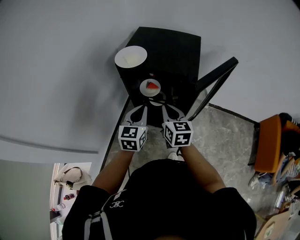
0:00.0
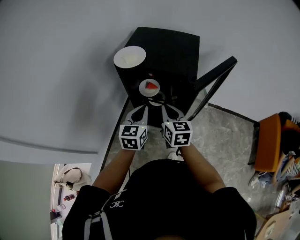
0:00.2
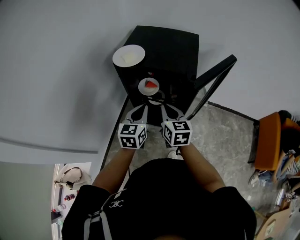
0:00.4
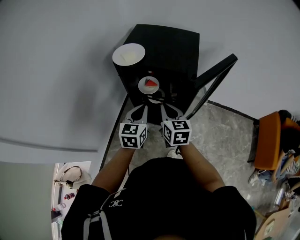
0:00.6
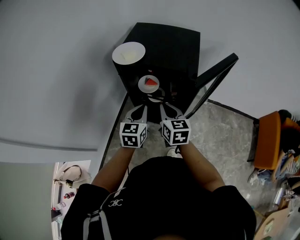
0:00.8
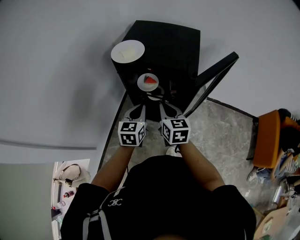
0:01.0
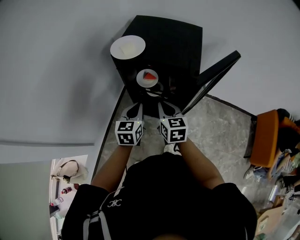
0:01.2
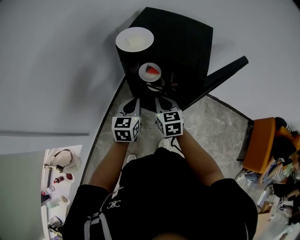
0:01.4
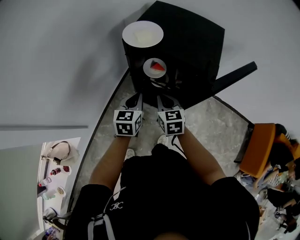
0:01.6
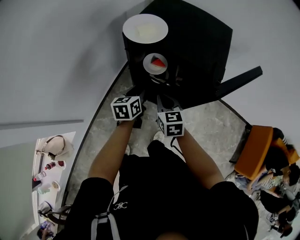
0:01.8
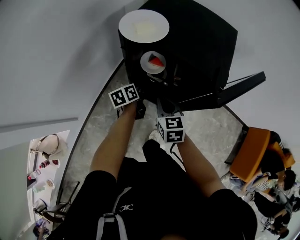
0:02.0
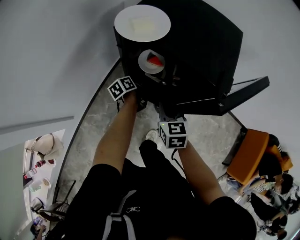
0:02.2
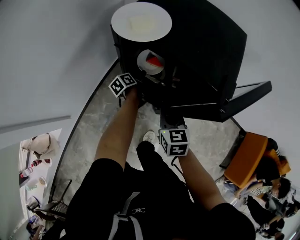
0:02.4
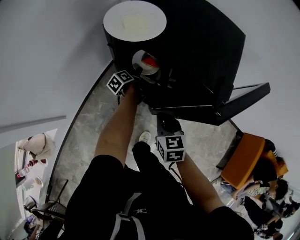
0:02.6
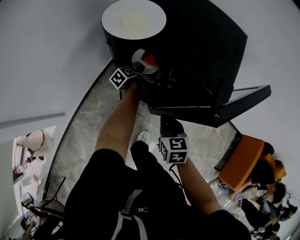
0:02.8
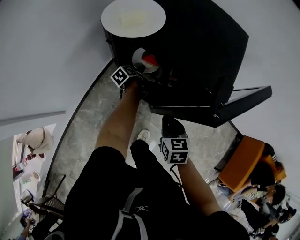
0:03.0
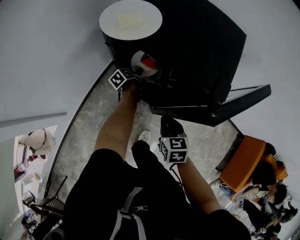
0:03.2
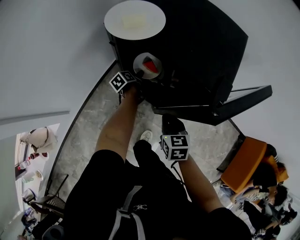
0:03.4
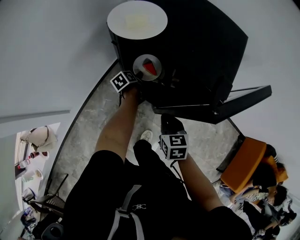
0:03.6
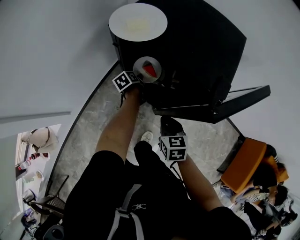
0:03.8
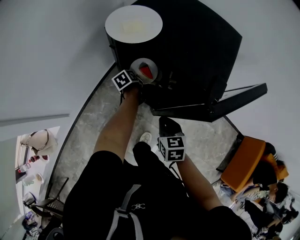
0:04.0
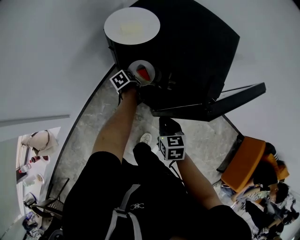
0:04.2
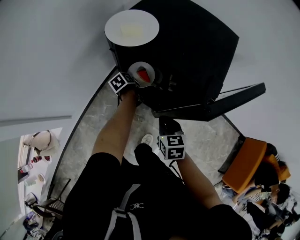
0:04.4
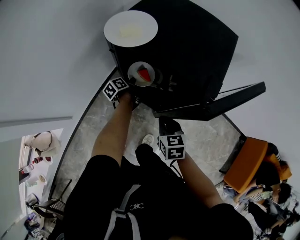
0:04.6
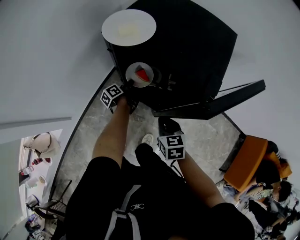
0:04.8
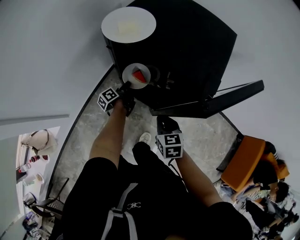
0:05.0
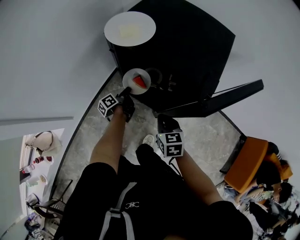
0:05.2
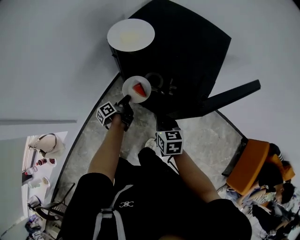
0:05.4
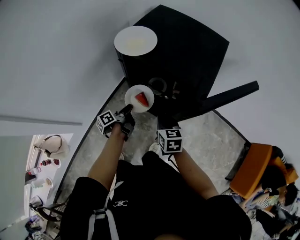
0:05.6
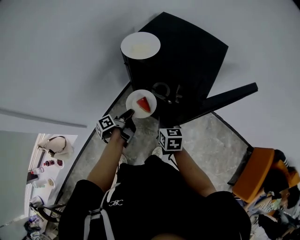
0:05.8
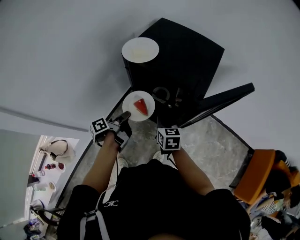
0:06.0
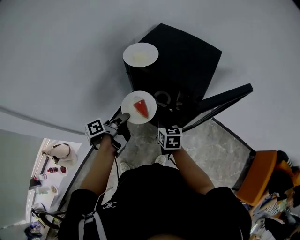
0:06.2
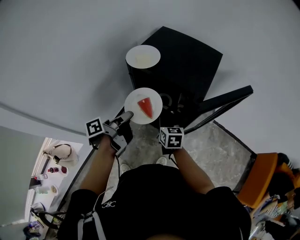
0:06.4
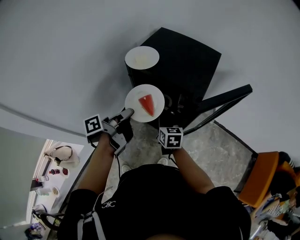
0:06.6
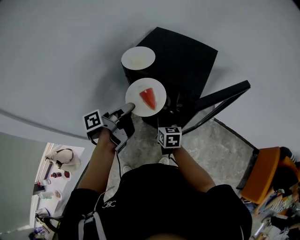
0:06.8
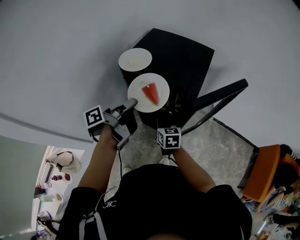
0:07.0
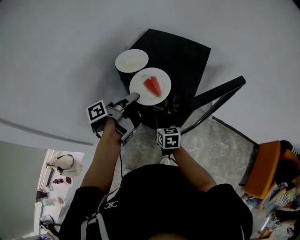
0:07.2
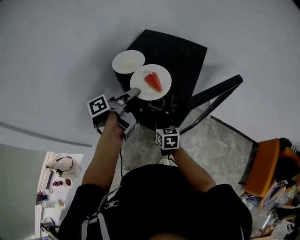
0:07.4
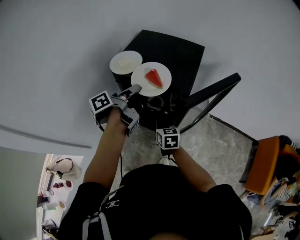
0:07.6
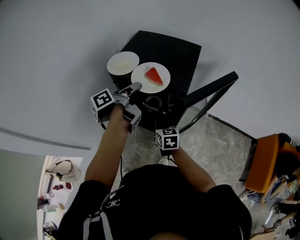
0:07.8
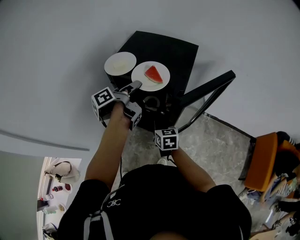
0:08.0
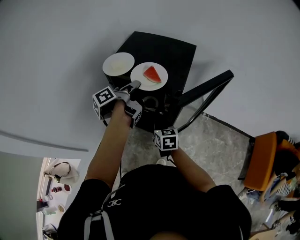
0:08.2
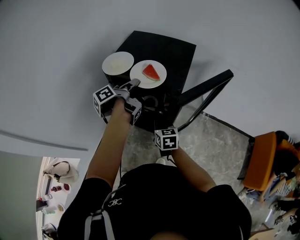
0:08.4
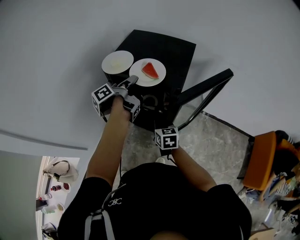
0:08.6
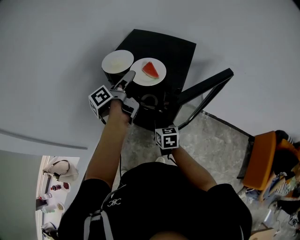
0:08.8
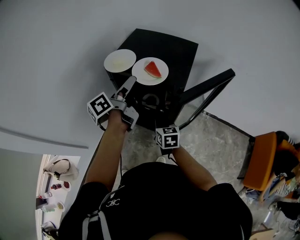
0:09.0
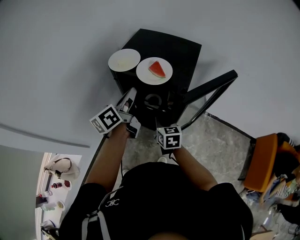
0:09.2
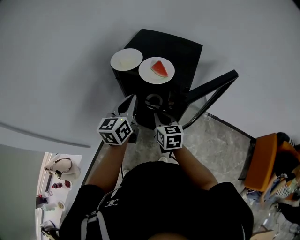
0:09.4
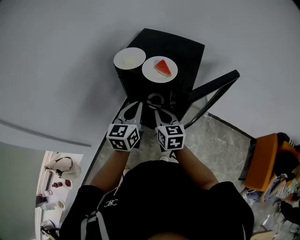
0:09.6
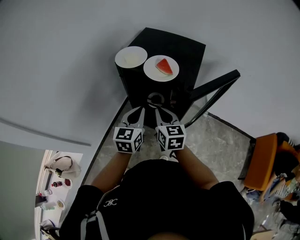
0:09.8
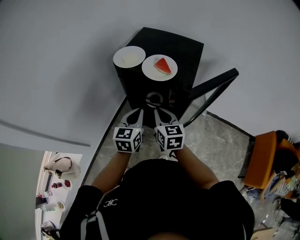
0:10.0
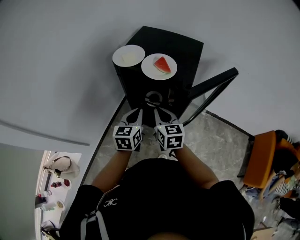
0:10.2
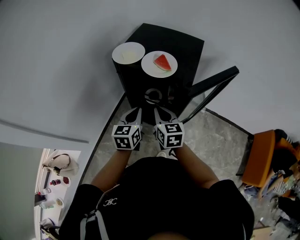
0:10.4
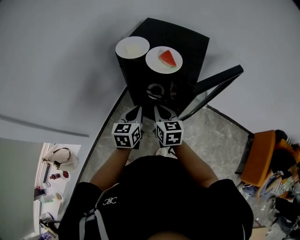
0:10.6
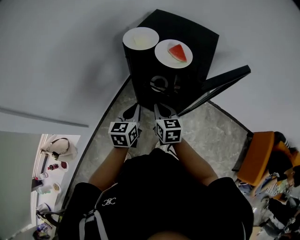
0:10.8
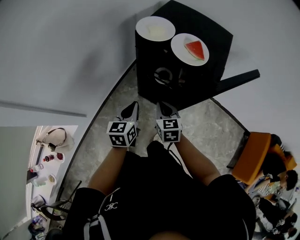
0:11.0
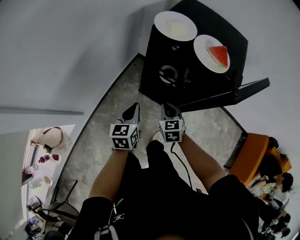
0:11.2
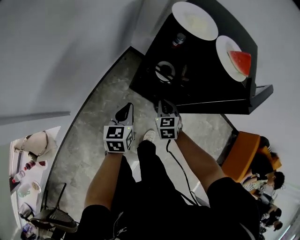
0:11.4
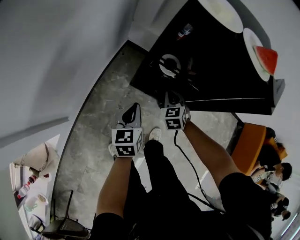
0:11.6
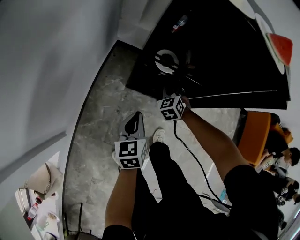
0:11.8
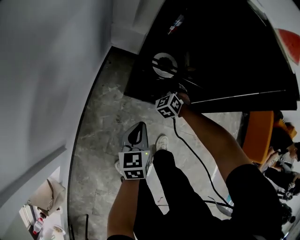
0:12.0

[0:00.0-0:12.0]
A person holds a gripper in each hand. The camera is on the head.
0:00.0 to 0:01.6: The two grippers go some 10 cm downward. The right gripper turns by about 20 degrees.
0:01.6 to 0:03.0: The left gripper goes approximately 35 cm downward and forward, twists approximately 60 degrees counterclockwise, seen from behind, and opens. The right gripper moves to the right and downward, some 15 cm.
0:03.0 to 0:04.4: The left gripper moves some 5 cm, and closes up.
0:04.4 to 0:06.0: The left gripper shifts about 25 cm upward and backward, and points its fingers some 30 degrees further upward, while the right gripper shifts about 5 cm upward.
0:06.0 to 0:07.6: The left gripper moves upward, to the right and forward, approximately 25 cm.
0:07.6 to 0:09.0: The left gripper opens its fingers.
0:09.0 to 0:10.4: The right gripper shifts roughly 10 cm upward, while the left gripper travels downward and backward by roughly 15 cm, rolls clockwise, seen from behind, by approximately 60 degrees, and closes its fingers.
0:10.4 to 0:12.0: The two grippers go roughly 40 cm downward. The right gripper rotates approximately 60 degrees, and opens up.

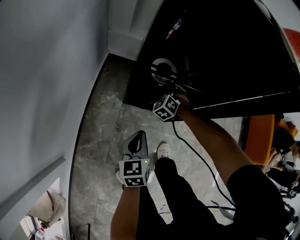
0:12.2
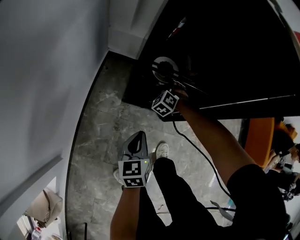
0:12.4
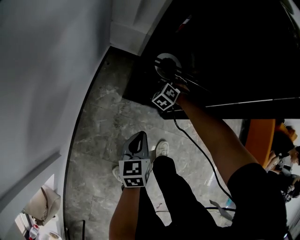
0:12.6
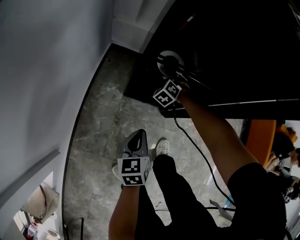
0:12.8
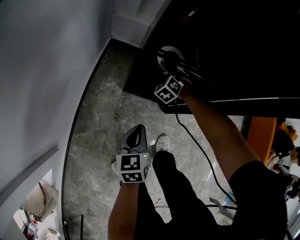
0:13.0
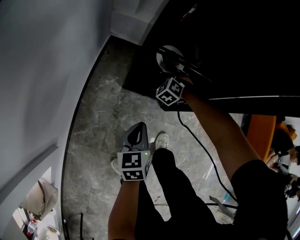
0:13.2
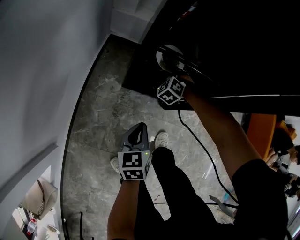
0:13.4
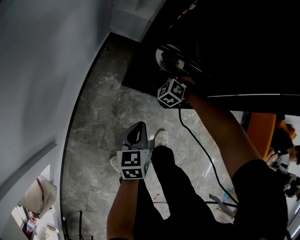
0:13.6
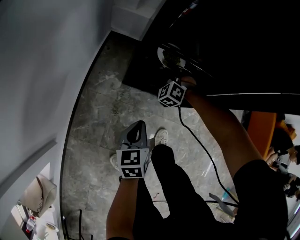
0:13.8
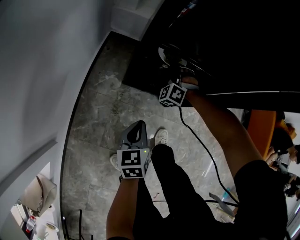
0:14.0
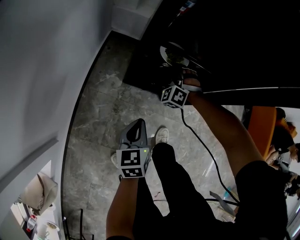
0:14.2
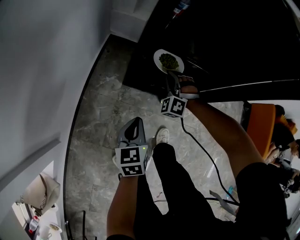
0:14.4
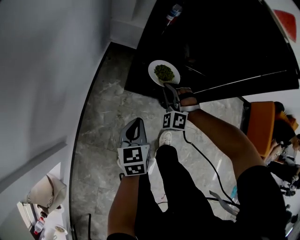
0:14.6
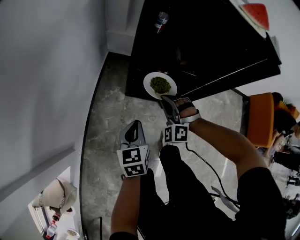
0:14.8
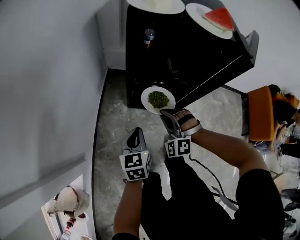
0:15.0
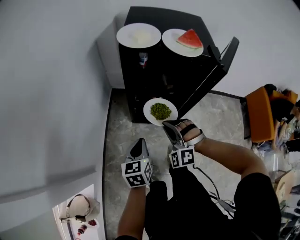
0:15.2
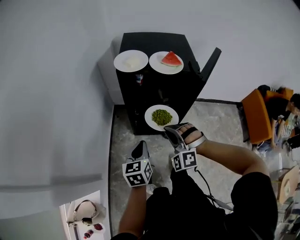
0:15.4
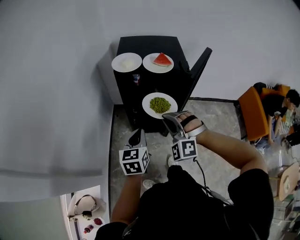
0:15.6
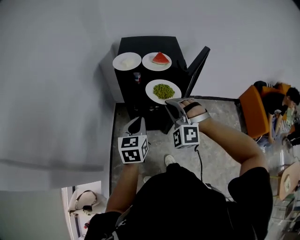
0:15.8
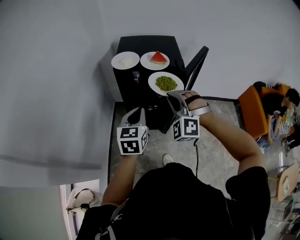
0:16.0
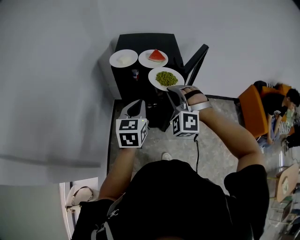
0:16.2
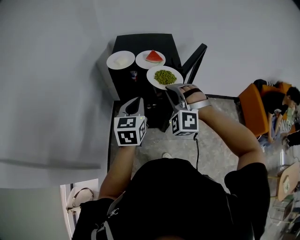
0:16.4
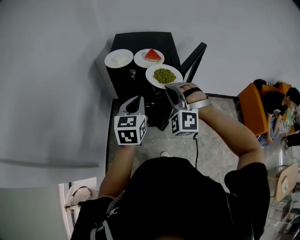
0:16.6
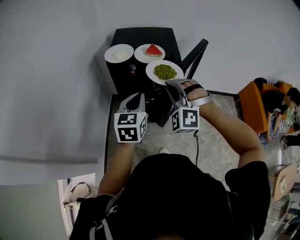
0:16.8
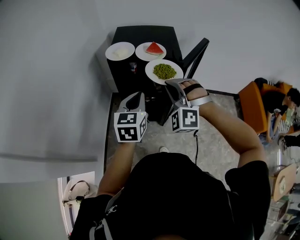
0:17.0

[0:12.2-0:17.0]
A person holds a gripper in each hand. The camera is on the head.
0:12.2 to 0:13.8: The right gripper closes up.
0:13.8 to 0:15.4: The right gripper is displaced upward and backward by approximately 50 cm. Meanwhile the left gripper moves upward, roughly 35 cm.
0:15.4 to 0:17.0: The left gripper shifts about 20 cm upward and to the right. The right gripper is displaced upward by some 15 cm.

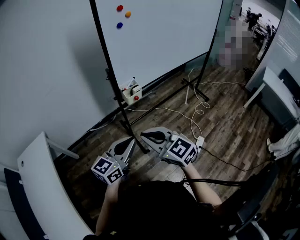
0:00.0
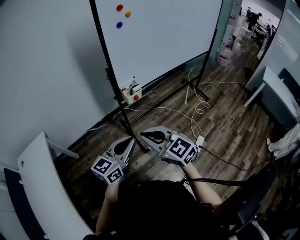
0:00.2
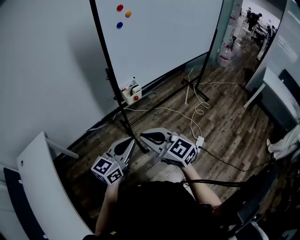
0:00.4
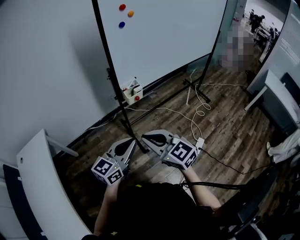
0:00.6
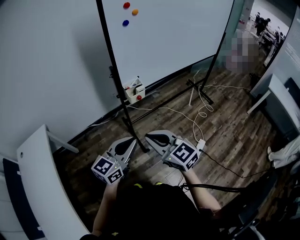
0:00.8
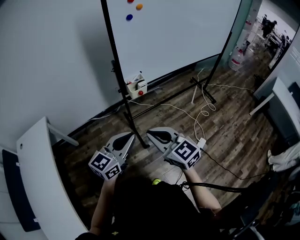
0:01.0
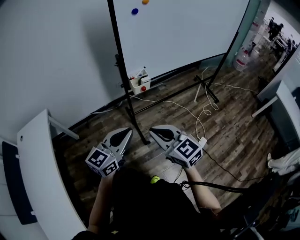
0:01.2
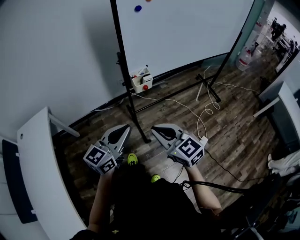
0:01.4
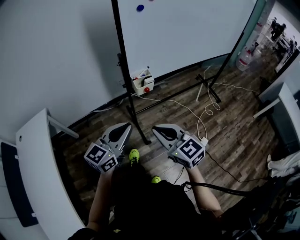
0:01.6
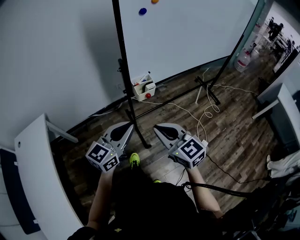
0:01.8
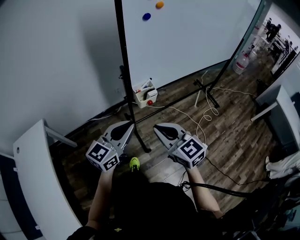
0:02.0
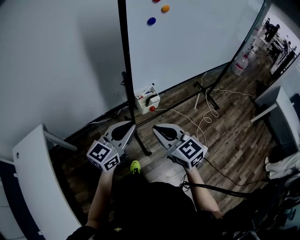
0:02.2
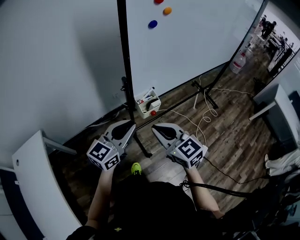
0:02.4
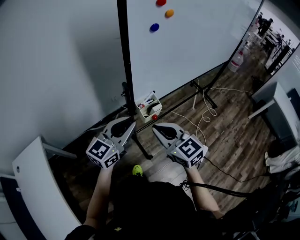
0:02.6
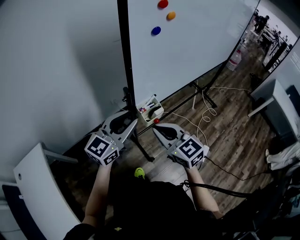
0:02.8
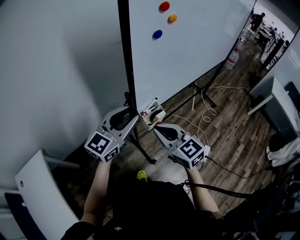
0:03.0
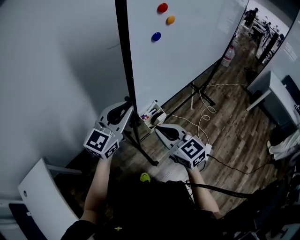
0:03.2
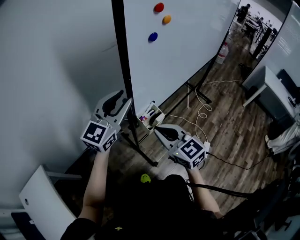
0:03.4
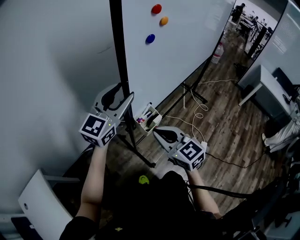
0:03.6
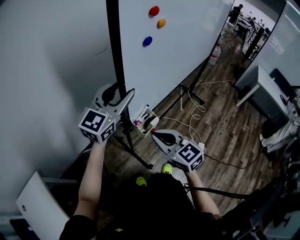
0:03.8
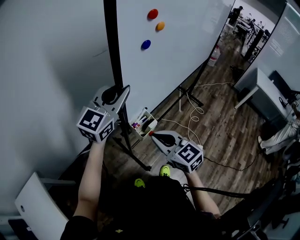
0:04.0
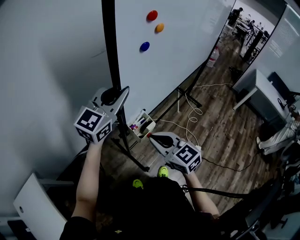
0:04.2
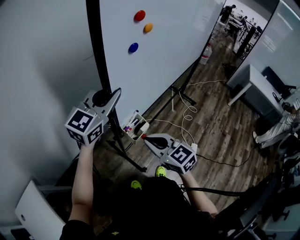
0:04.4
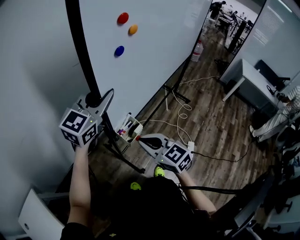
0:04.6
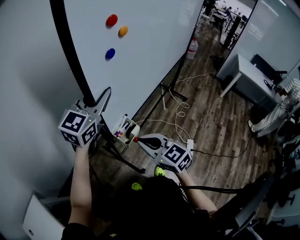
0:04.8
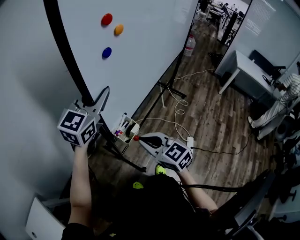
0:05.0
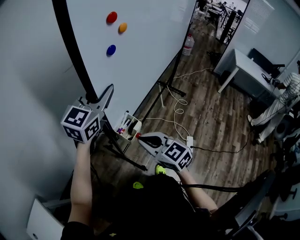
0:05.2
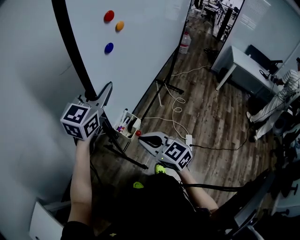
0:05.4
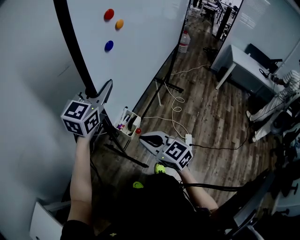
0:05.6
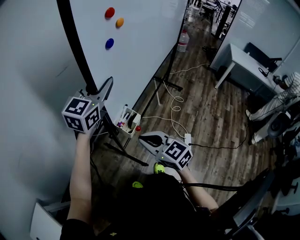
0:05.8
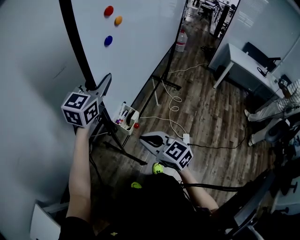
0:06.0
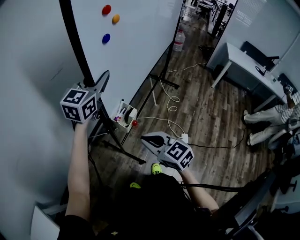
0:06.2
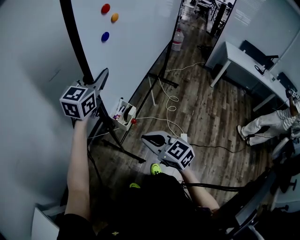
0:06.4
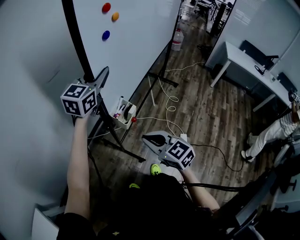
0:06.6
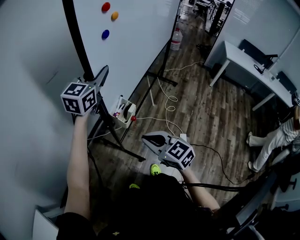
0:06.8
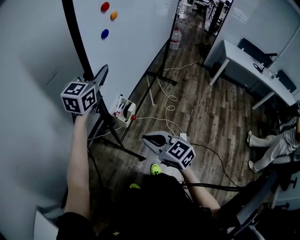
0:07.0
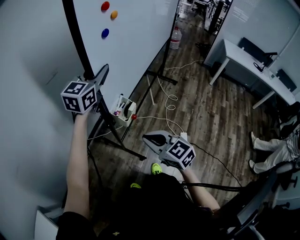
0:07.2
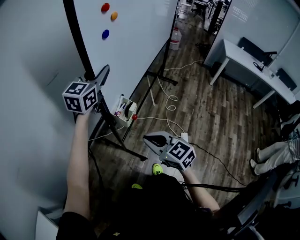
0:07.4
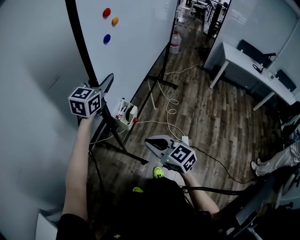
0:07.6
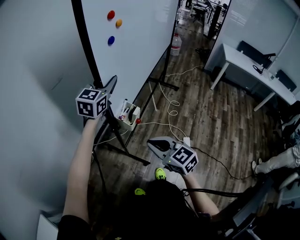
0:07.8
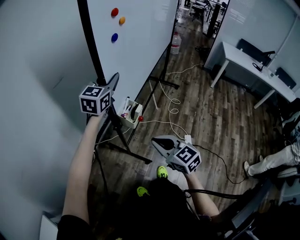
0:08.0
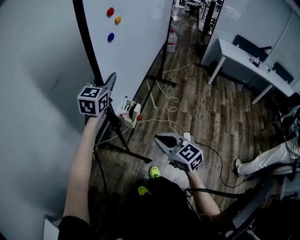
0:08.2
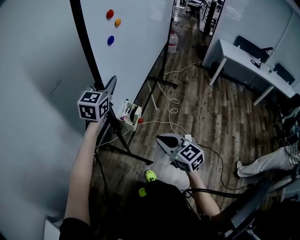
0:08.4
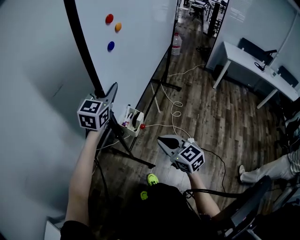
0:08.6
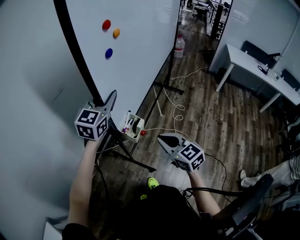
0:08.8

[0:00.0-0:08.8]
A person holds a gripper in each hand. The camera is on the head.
0:00.0 to 0:01.4: The right gripper changes place by roughly 5 cm.
0:01.4 to 0:03.0: The grippers both shift forward by some 25 cm. The left gripper opens its fingers.
0:03.0 to 0:04.4: The left gripper moves forward and upward, approximately 15 cm.
0:04.4 to 0:05.8: The left gripper travels to the right and forward by approximately 10 cm. The right gripper goes about 5 cm to the right.
0:05.8 to 0:07.4: The right gripper moves about 5 cm; the left gripper is displaced forward by roughly 10 cm.
0:07.4 to 0:08.8: The right gripper goes approximately 5 cm forward.
